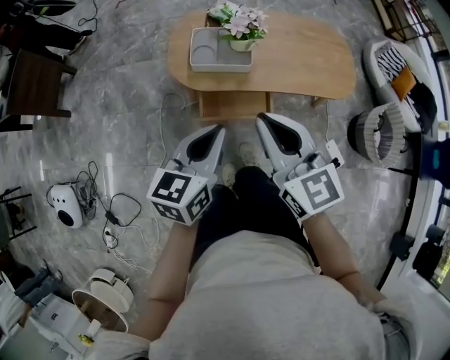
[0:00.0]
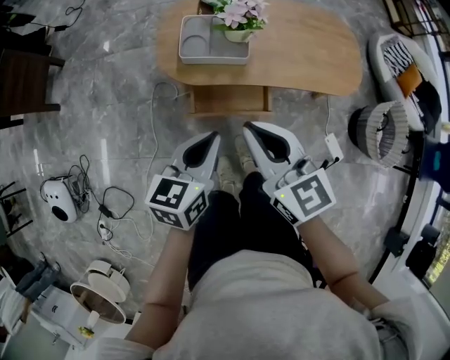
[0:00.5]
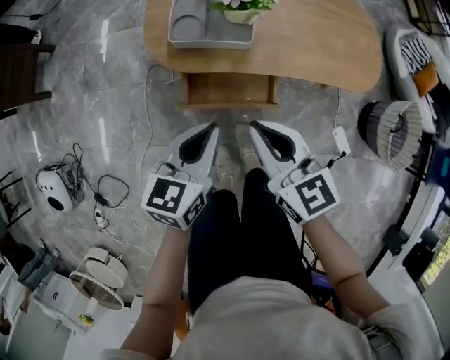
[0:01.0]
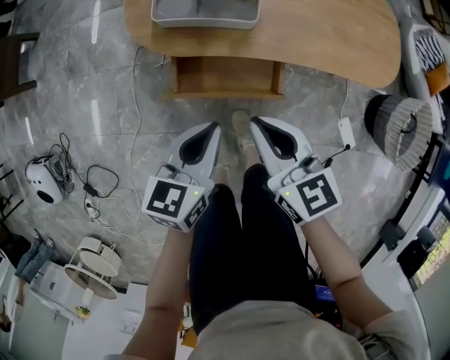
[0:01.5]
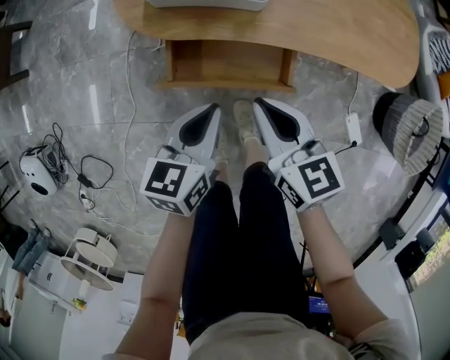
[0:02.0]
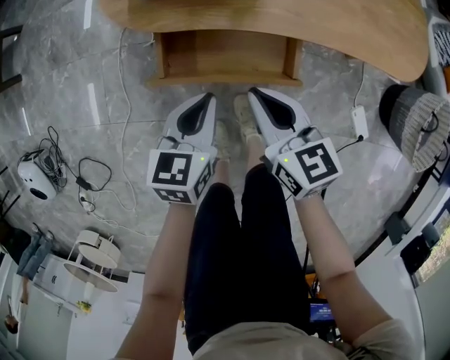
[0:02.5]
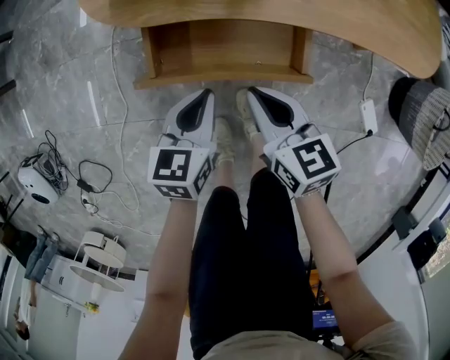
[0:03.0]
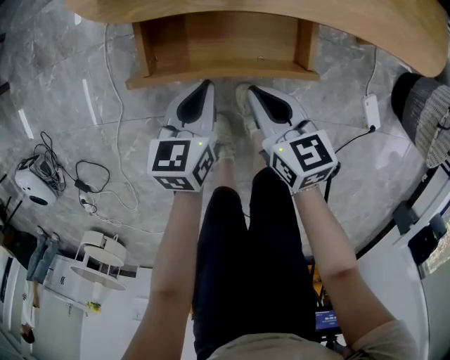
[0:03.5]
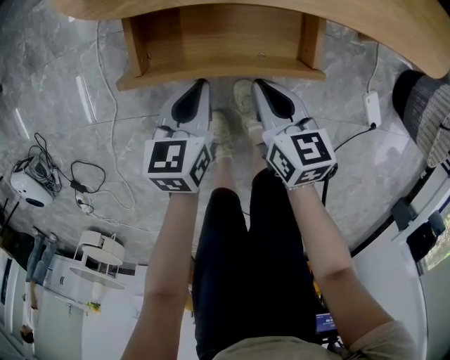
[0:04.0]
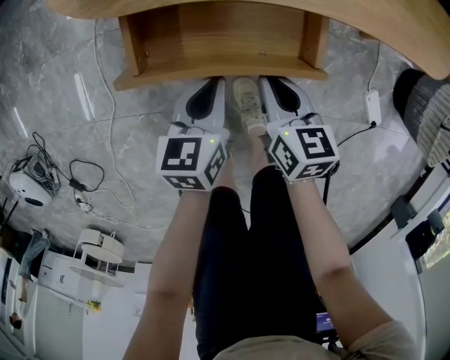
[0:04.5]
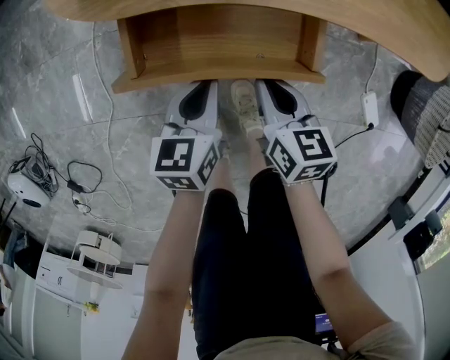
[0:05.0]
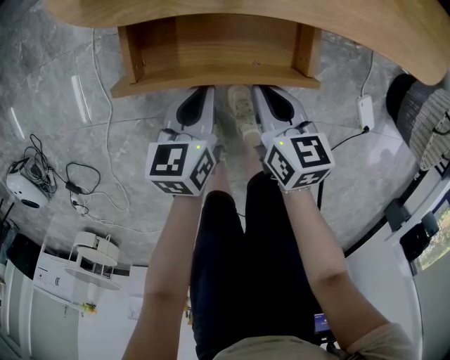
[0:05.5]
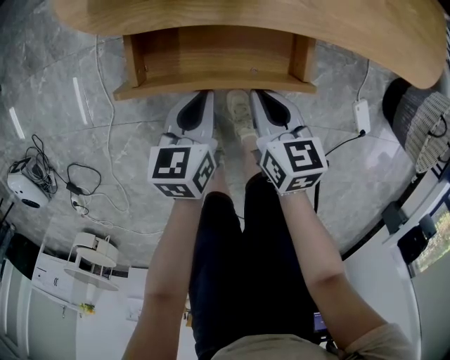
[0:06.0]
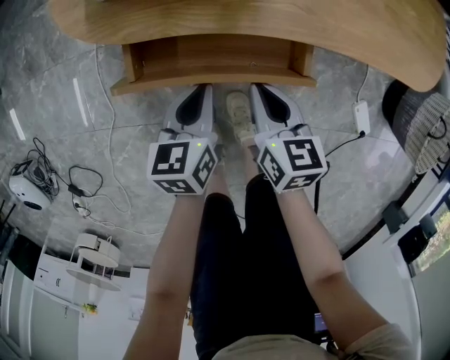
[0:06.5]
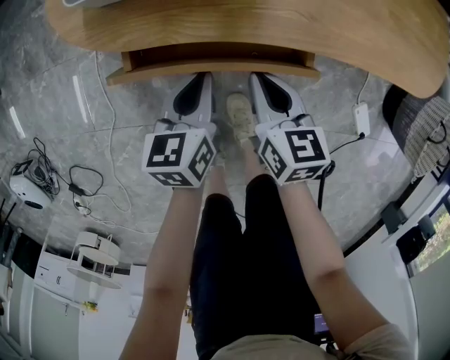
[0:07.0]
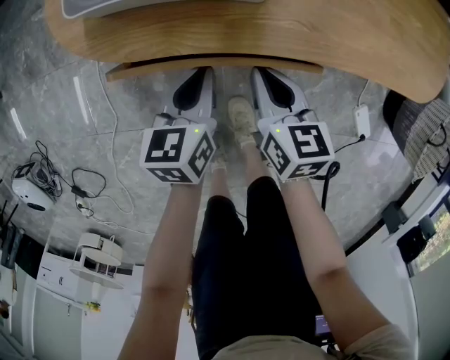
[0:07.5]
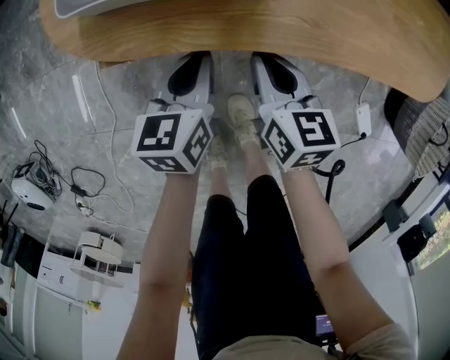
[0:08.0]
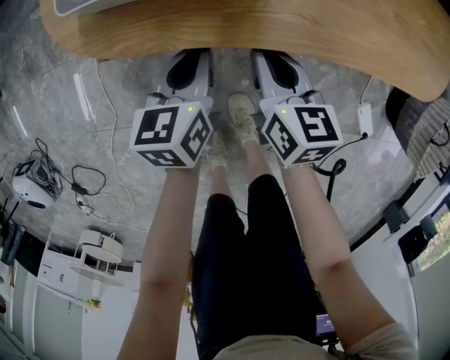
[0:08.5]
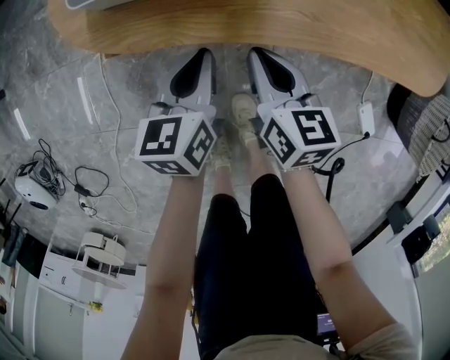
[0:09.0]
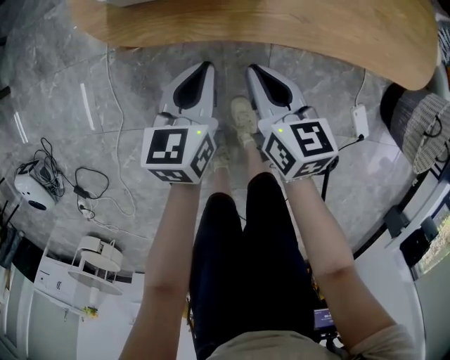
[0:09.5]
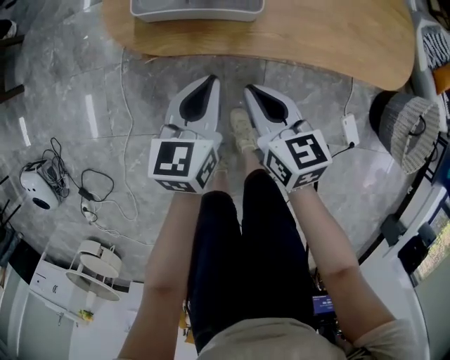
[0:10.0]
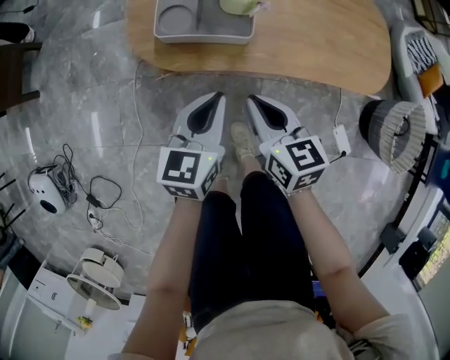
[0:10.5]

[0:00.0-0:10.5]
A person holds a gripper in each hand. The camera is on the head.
0.0 to 2.0 s: The grippers both shift downward by roughly 35 cm. The right gripper turns by some 20 degrees.
2.0 to 4.0 s: Both grippers move downward, approximately 20 cm.
4.0 to 6.5 s: The left gripper moves approximately 5 cm. The right gripper shifts by some 5 cm.
6.5 to 8.5 s: The grippers both shift forward by about 10 cm.
8.5 to 10.5 s: Both grippers travel together upward, about 25 cm.

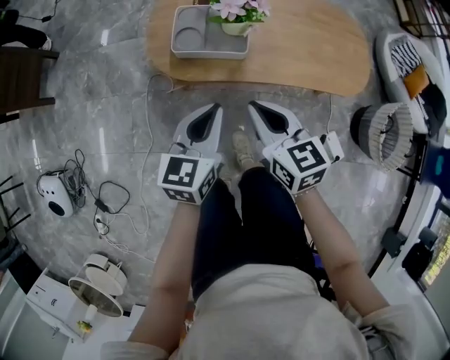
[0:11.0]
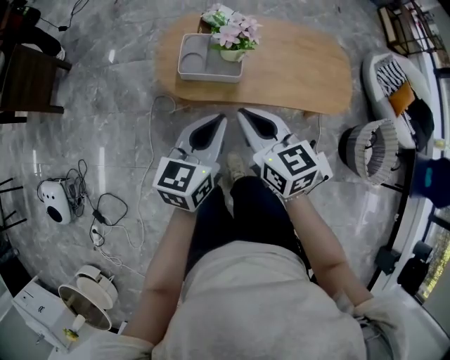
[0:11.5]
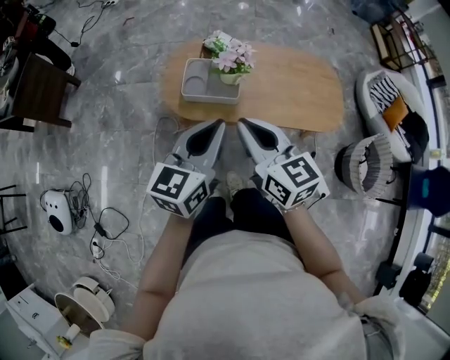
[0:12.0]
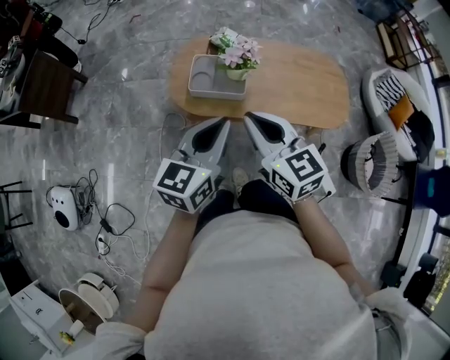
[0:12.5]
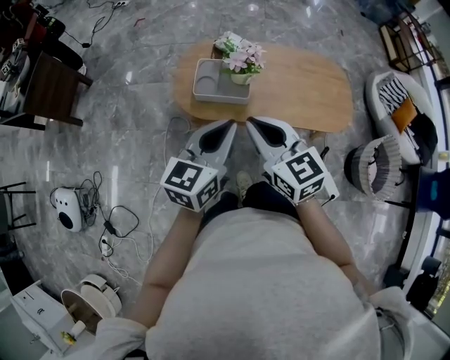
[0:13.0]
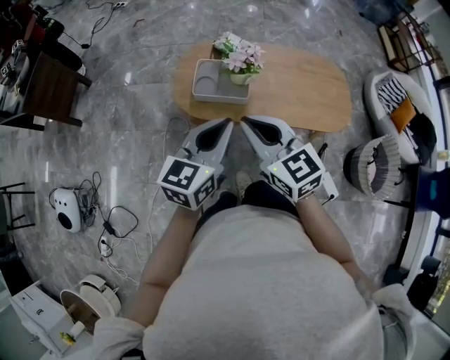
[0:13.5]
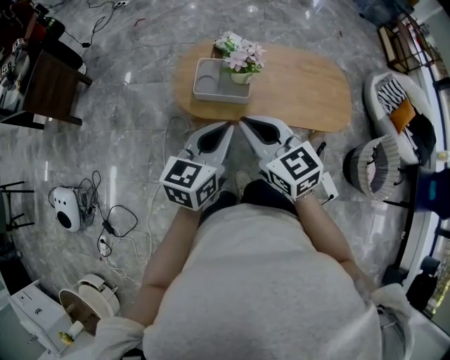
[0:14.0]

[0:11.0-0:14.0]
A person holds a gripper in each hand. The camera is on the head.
11.0 to 12.5 s: The two grippers go roughly 20 cm upward.
12.5 to 14.0 s: The grippers move only a little.

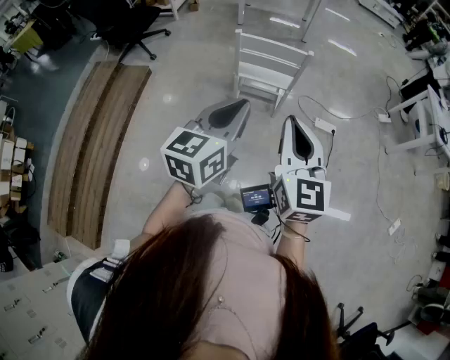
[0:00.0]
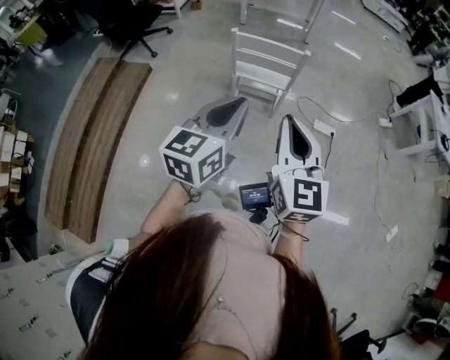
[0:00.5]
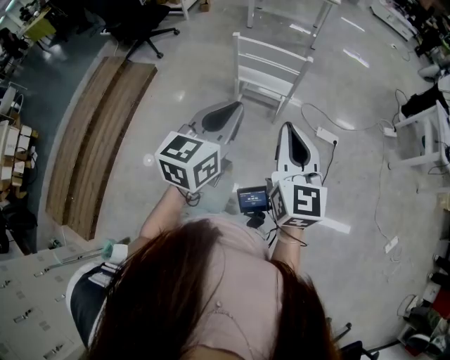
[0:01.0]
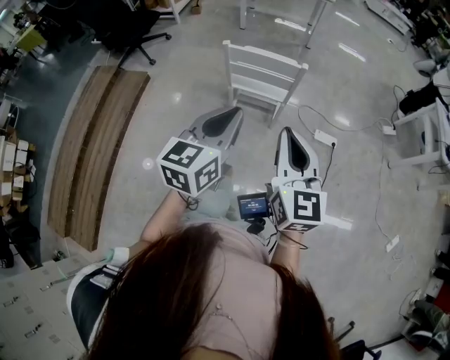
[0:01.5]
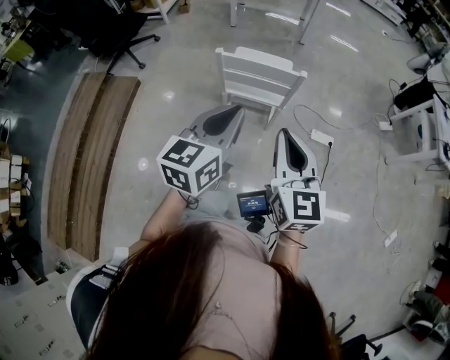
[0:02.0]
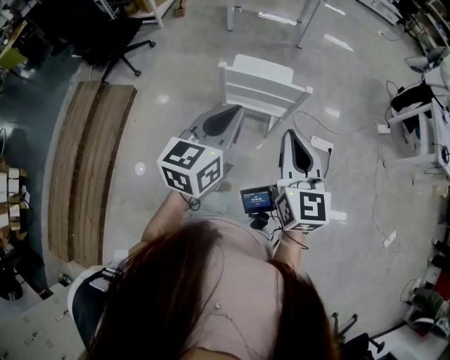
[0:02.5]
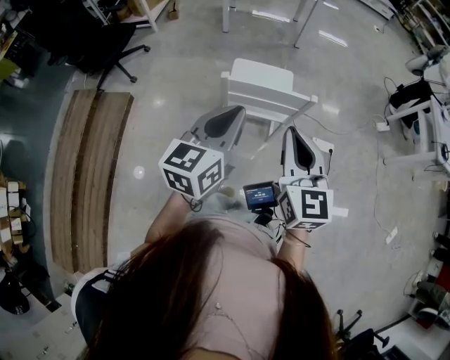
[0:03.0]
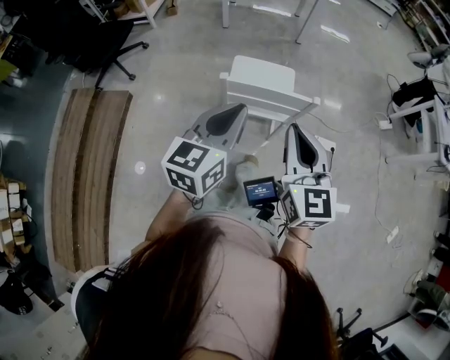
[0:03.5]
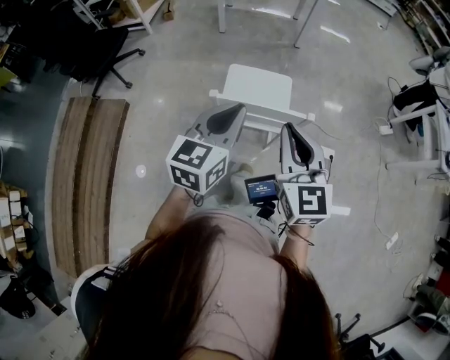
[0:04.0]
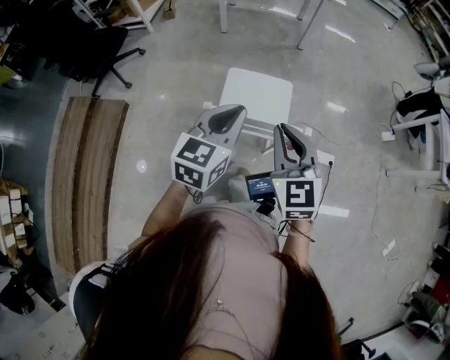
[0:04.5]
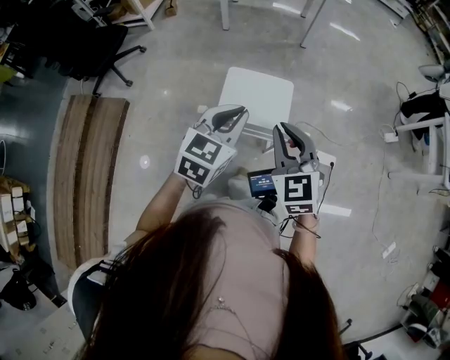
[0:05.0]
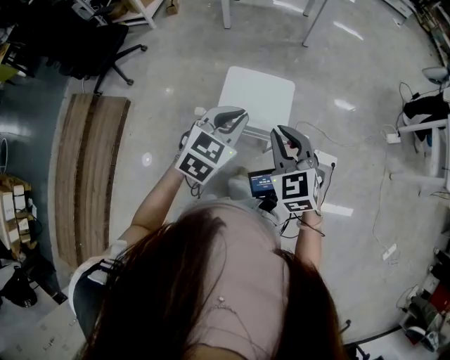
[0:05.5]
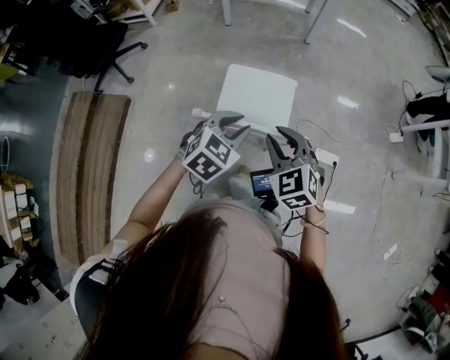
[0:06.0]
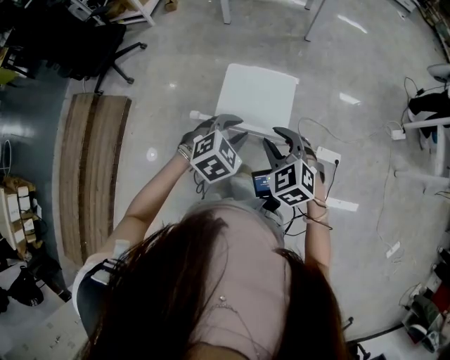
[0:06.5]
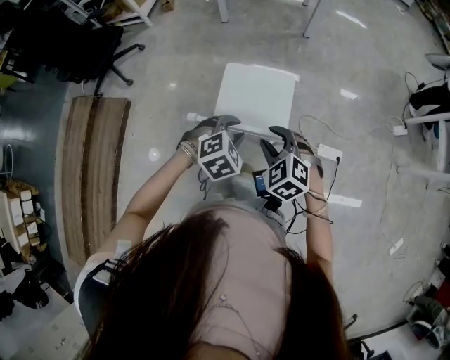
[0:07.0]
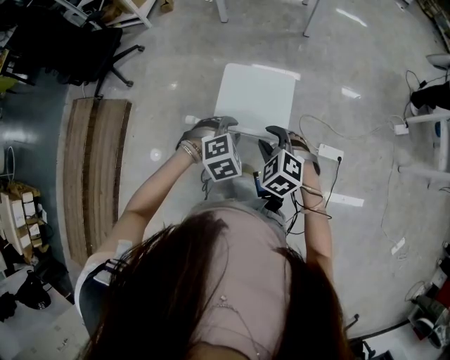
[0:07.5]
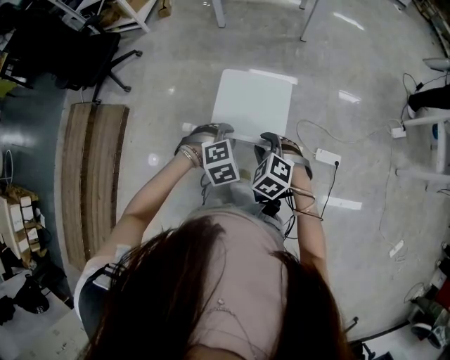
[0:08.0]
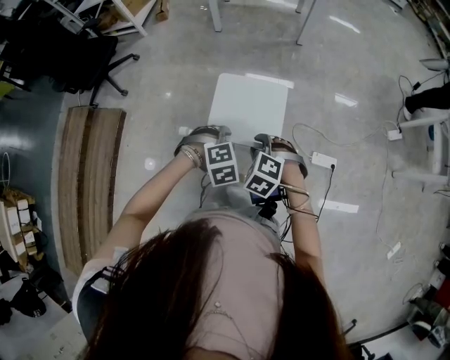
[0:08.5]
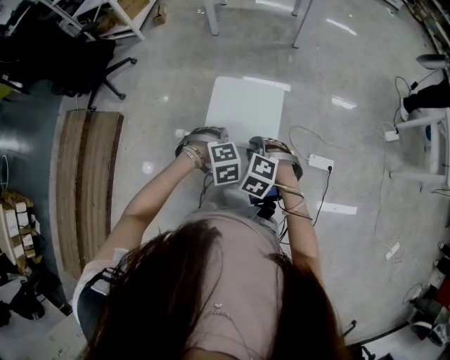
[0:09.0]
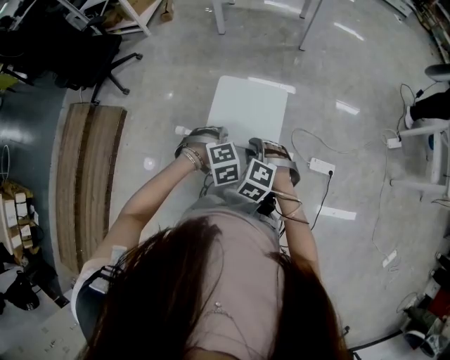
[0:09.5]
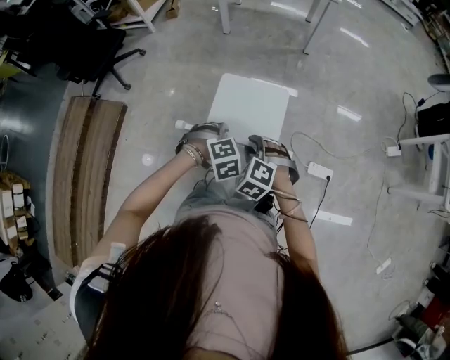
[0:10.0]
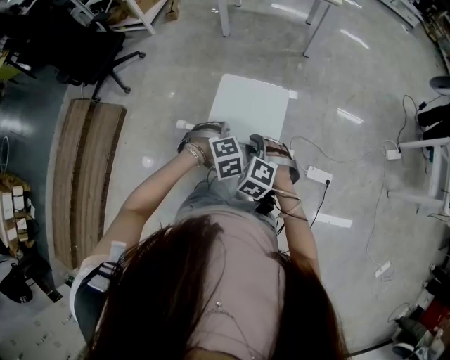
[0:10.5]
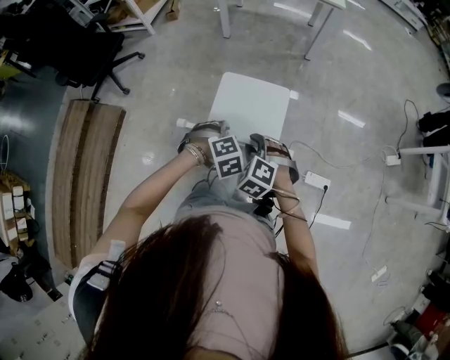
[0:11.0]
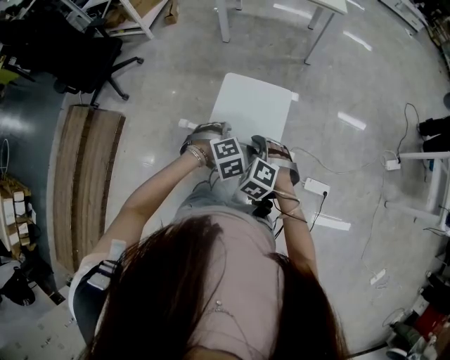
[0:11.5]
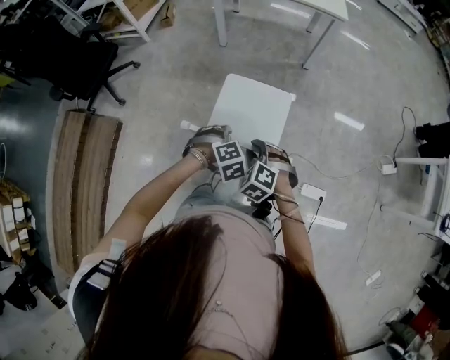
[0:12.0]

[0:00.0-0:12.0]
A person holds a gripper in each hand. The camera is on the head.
0.0 to 2.0 s: The two grippers go about 20 cm forward.
2.0 to 4.0 s: The grippers both shift forward by about 20 cm.
4.0 to 6.0 s: The left gripper heads downward, forward and to the right, covering approximately 20 cm, changes its angle by roughly 40 degrees, and opens up, while the right gripper goes approximately 20 cm downward and forward, and swivels approximately 40 degrees.
6.0 to 8.0 s: The two grippers go about 10 cm downward. The left gripper swivels roughly 40 degrees; the right gripper turns by some 30 degrees.
8.0 to 10.0 s: The grippers stay close to where they were, moving slightly.
10.0 to 12.0 s: The two grippers go approximately 20 cm forward.

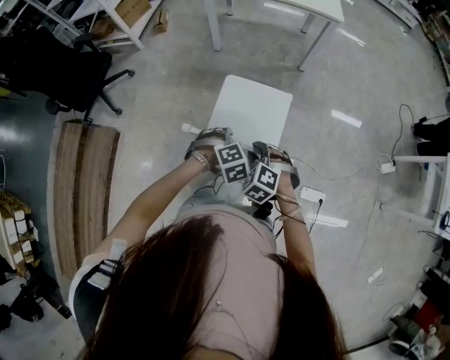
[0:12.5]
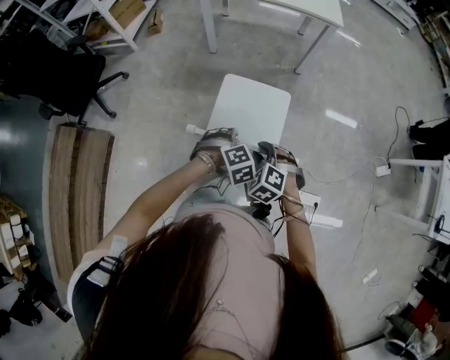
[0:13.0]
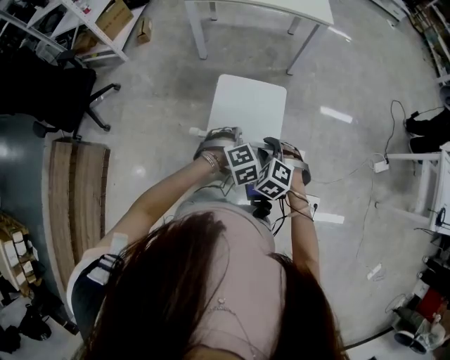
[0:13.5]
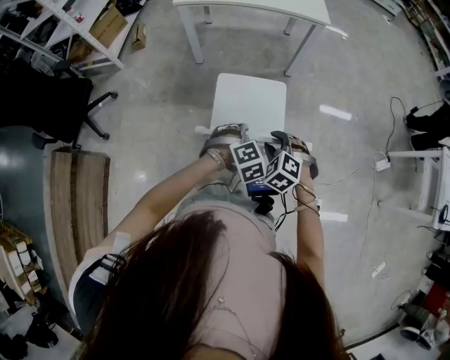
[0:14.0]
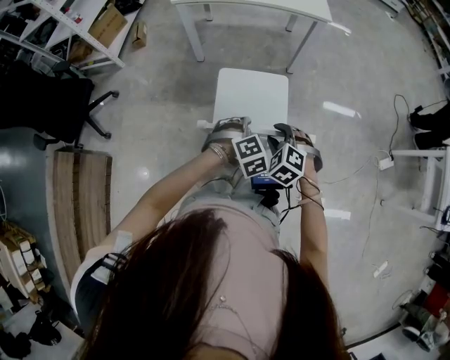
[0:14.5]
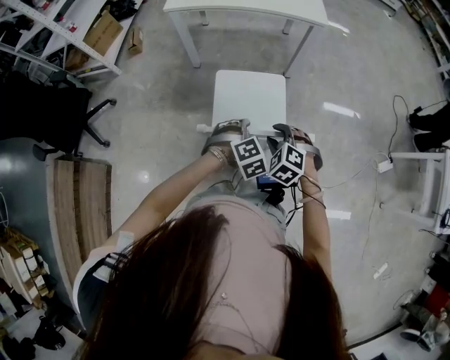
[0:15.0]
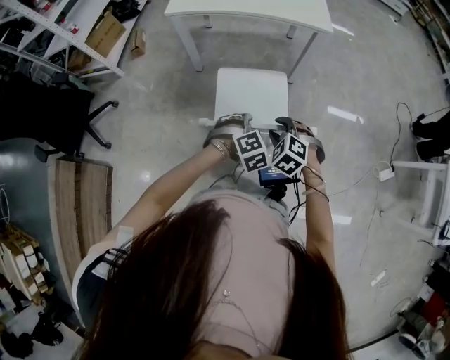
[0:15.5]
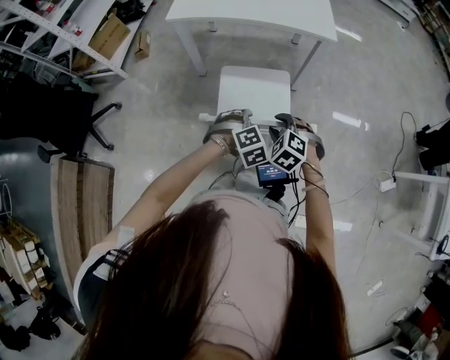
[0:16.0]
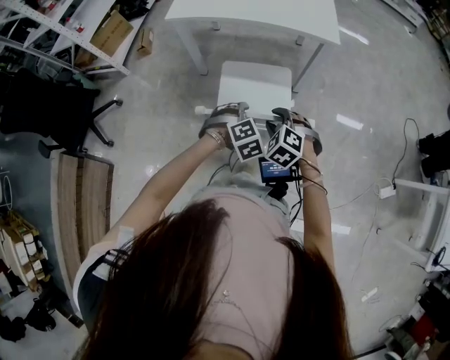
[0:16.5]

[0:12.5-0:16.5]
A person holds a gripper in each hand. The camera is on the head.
12.5 to 14.5 s: Both grippers travel together forward and to the right, roughly 20 cm.
14.5 to 16.5 s: Both grippers travel together forward, about 20 cm.
